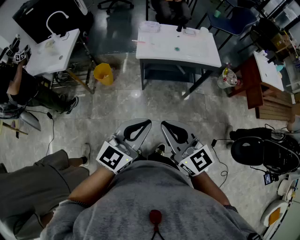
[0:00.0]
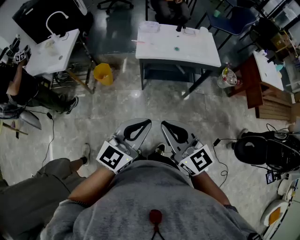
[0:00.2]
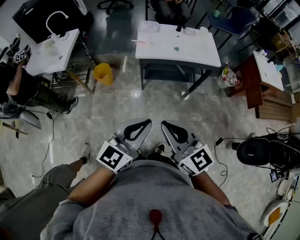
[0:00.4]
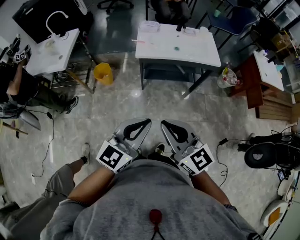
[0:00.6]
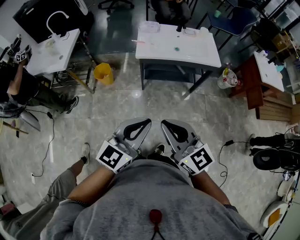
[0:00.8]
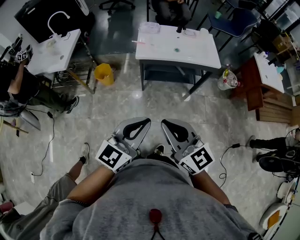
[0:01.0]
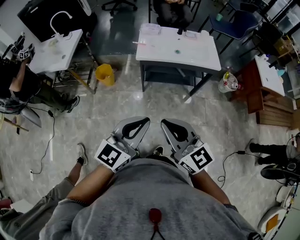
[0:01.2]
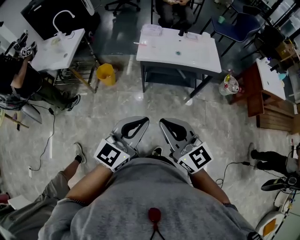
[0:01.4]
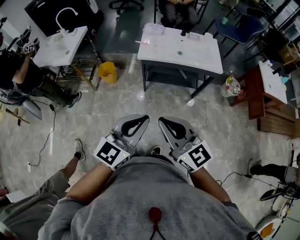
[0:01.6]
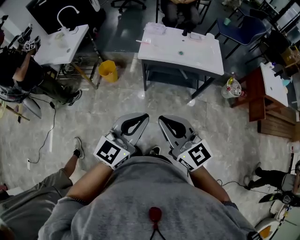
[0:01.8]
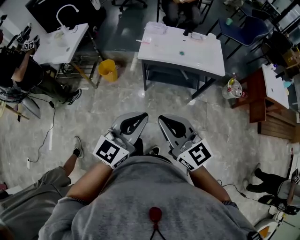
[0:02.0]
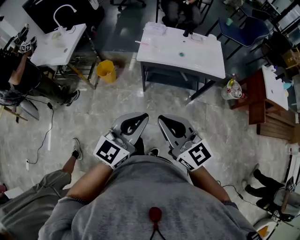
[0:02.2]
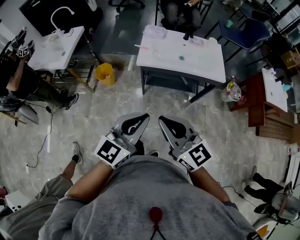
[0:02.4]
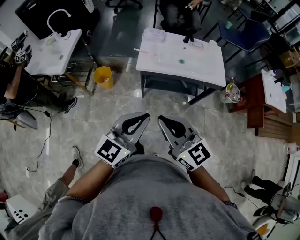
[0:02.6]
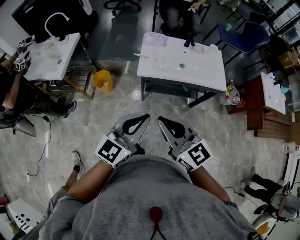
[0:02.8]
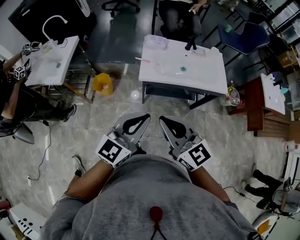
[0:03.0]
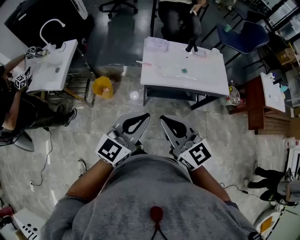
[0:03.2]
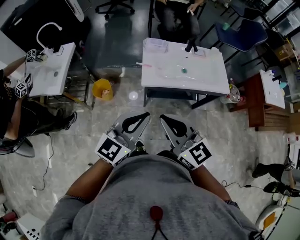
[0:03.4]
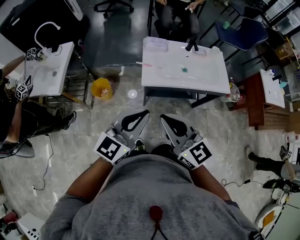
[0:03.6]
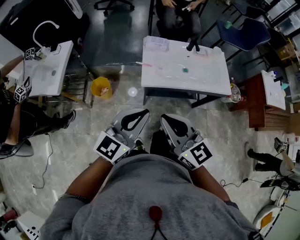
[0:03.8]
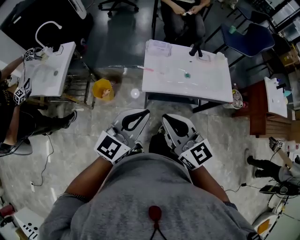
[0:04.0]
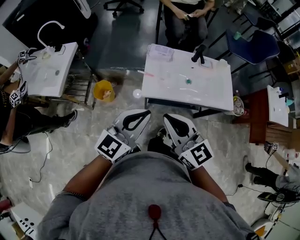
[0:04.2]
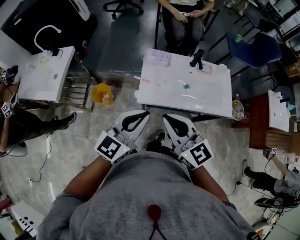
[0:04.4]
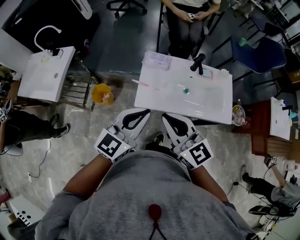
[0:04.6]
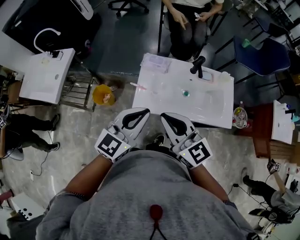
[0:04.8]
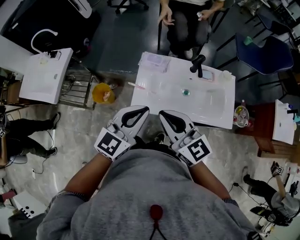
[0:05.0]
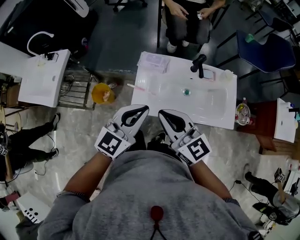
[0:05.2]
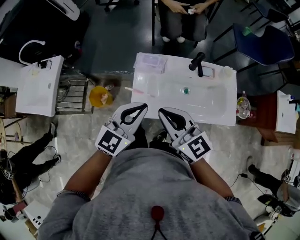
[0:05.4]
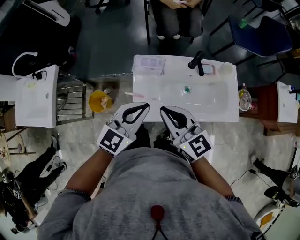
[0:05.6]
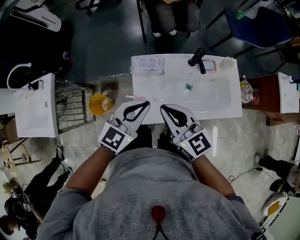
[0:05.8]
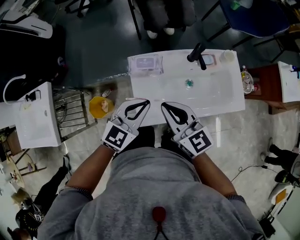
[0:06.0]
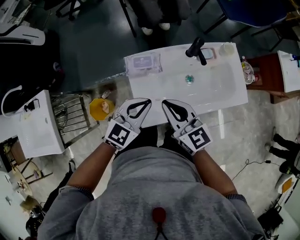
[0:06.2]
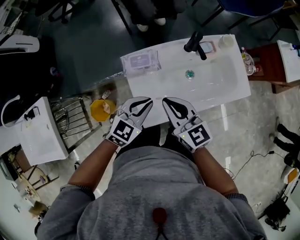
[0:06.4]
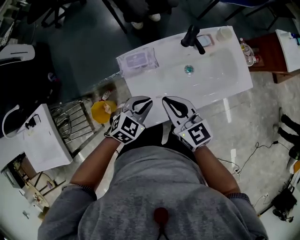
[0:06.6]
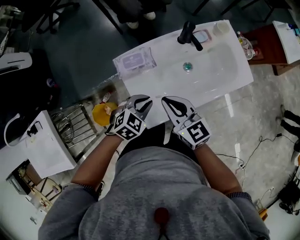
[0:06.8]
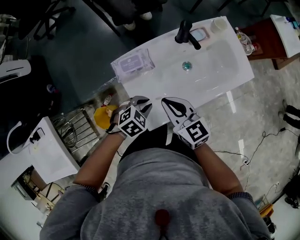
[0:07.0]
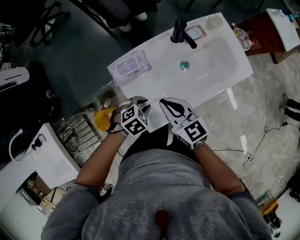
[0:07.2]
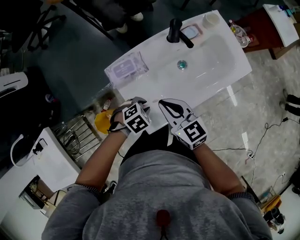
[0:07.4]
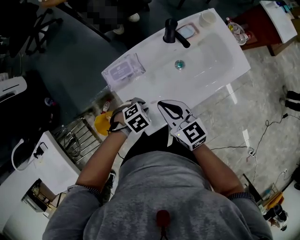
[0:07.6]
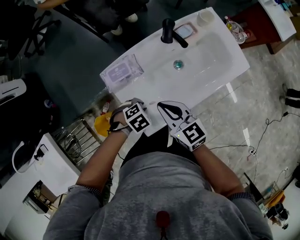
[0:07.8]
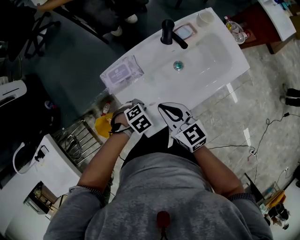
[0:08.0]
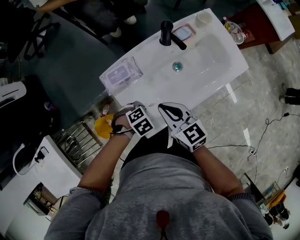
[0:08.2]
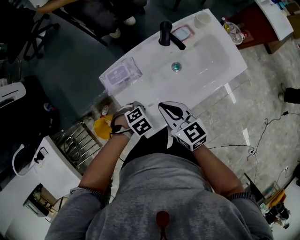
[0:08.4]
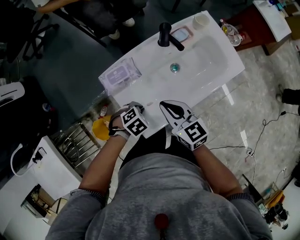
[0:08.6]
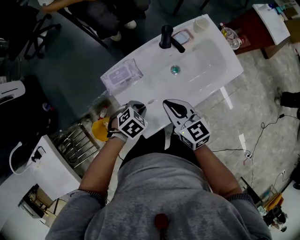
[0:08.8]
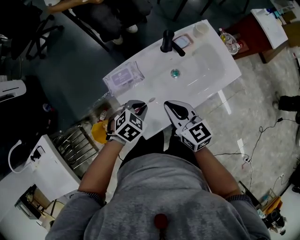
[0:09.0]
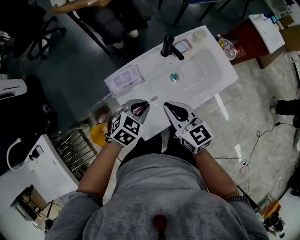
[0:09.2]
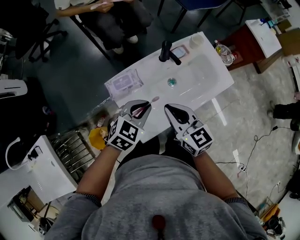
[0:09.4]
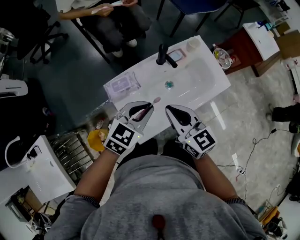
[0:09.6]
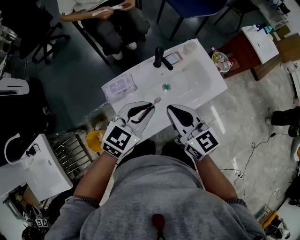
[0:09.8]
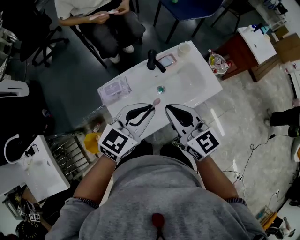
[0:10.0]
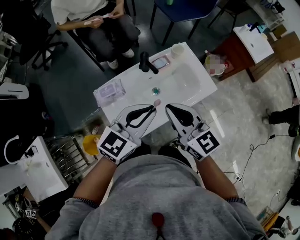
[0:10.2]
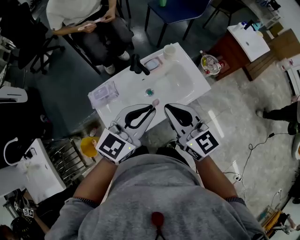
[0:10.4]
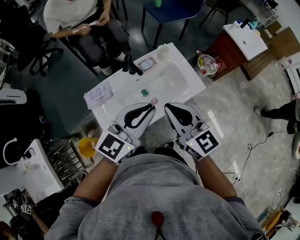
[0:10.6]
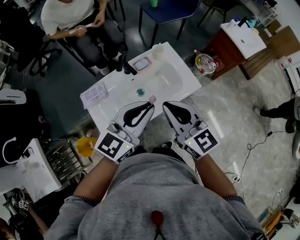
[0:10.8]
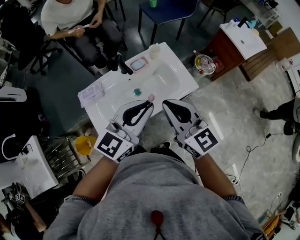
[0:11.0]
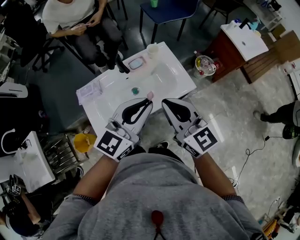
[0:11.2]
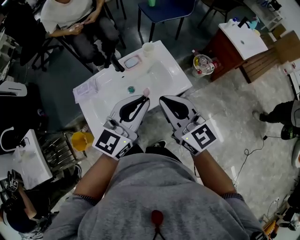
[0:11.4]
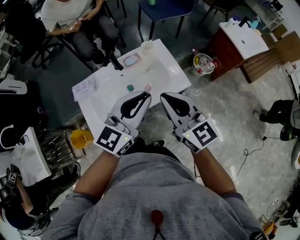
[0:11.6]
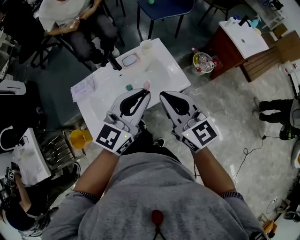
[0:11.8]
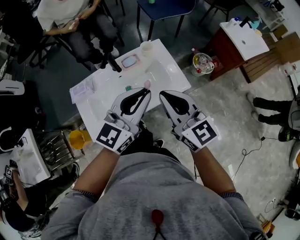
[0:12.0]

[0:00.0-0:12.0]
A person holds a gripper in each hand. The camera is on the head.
0:00.0 to 0:01.6: The grippers move only a little.
0:01.6 to 0:03.0: The grippers both shift forward by about 20 cm.
0:03.0 to 0:04.4: The two grippers go approximately 20 cm forward.
0:04.4 to 0:06.0: The two grippers go about 25 cm forward and downward. The left gripper turns by approximately 20 degrees.
0:06.0 to 0:07.6: The right gripper heads downward, covering approximately 15 cm, and rotates about 20 degrees; the left gripper is displaced downward by roughly 25 cm, points its fingers some 50 degrees further downward, and opens its fingers.
0:07.6 to 0:09.0: The left gripper moves upward, roughly 10 cm, and changes its angle by approximately 20 degrees.
0:09.0 to 0:10.4: The grippers both shift upward and to the right by about 30 cm. The left gripper points its fingers approximately 50 degrees further upward.
0:10.4 to 0:12.0: Both grippers move to the right, approximately 15 cm.

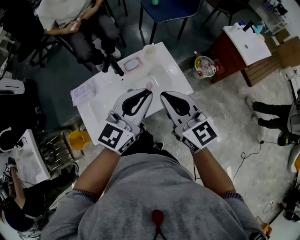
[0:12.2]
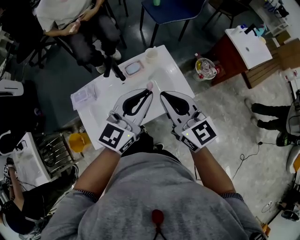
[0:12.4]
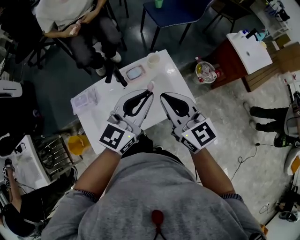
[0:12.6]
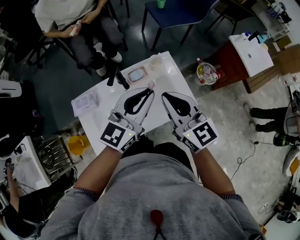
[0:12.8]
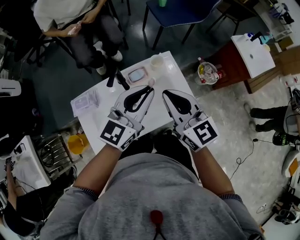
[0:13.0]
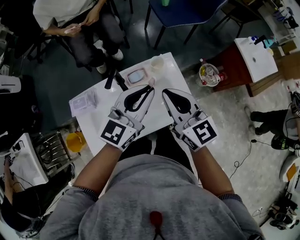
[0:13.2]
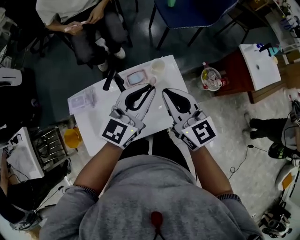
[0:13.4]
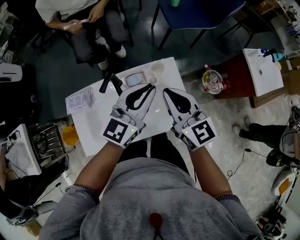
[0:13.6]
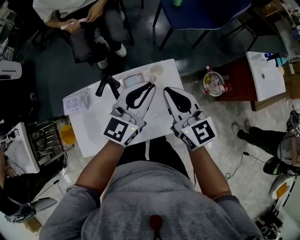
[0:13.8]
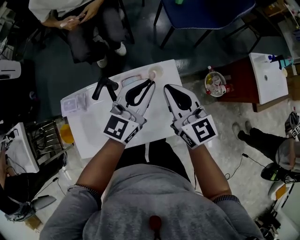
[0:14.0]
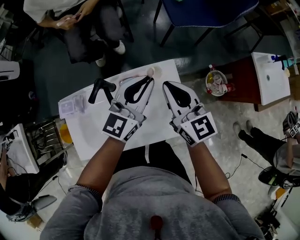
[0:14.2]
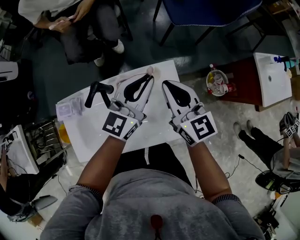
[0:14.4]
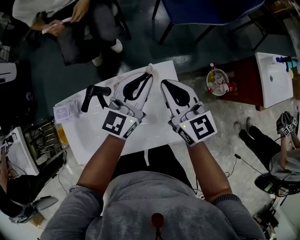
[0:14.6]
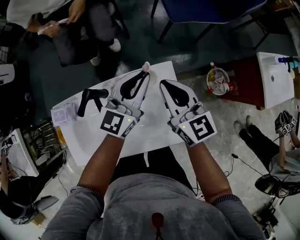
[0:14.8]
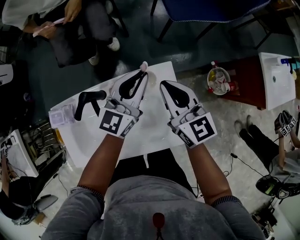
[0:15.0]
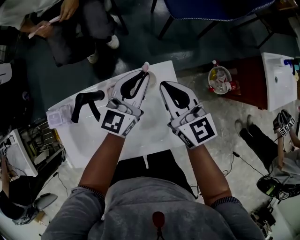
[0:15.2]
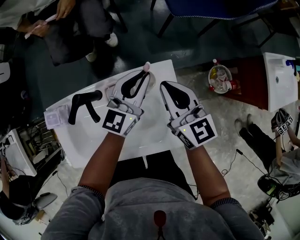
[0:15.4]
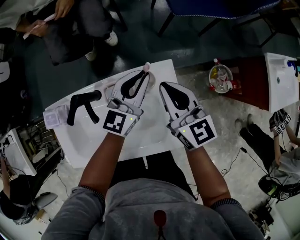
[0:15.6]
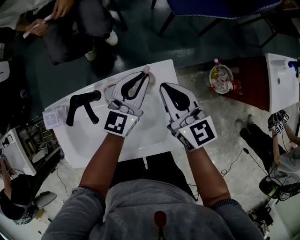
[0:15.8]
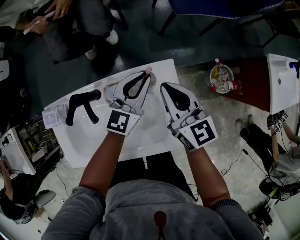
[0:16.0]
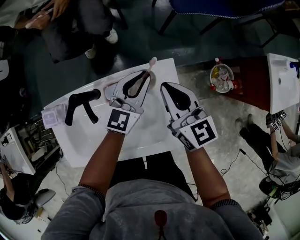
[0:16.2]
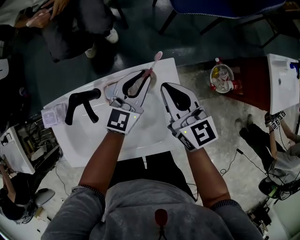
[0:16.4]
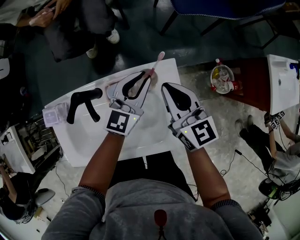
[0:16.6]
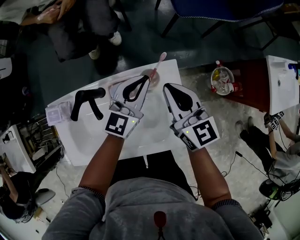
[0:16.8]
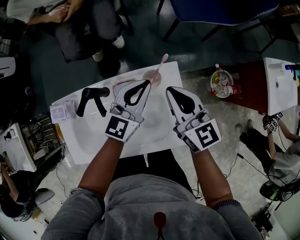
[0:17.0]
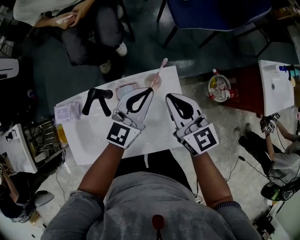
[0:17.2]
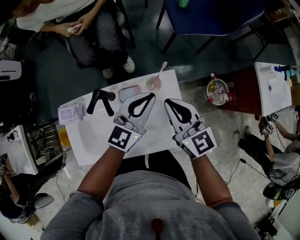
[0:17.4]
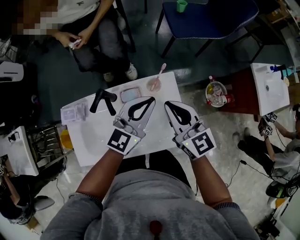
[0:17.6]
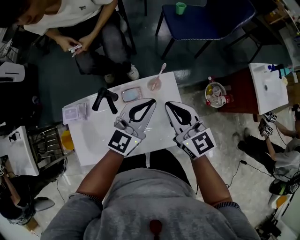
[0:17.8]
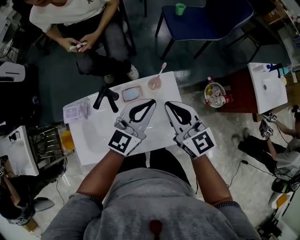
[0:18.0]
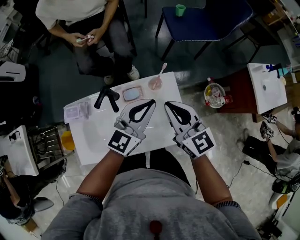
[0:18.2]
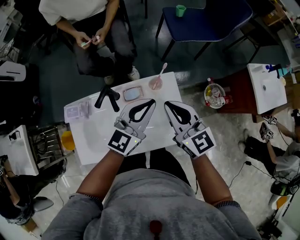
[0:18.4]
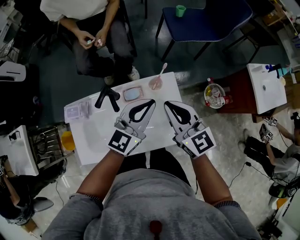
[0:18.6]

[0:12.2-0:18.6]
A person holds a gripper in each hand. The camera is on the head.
0:12.2 to 0:13.8: Both grippers move forward, approximately 20 cm.
0:13.8 to 0:15.4: Both grippers move downward and forward, roughly 20 cm.
0:15.4 to 0:17.0: The grippers move only a little.
0:17.0 to 0:18.6: Both grippers travel together upward and backward, roughly 15 cm.

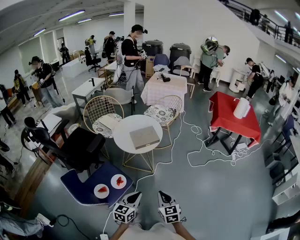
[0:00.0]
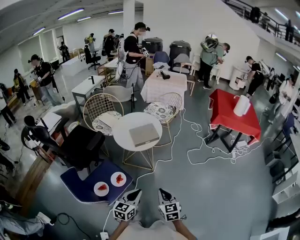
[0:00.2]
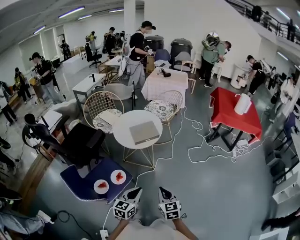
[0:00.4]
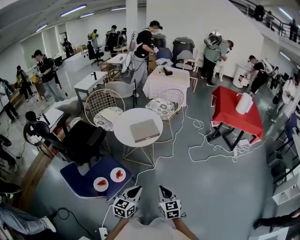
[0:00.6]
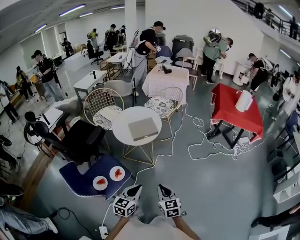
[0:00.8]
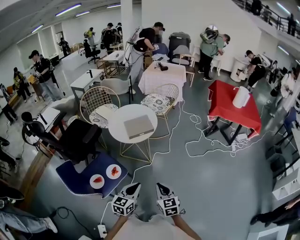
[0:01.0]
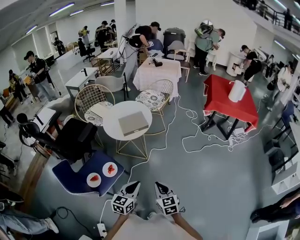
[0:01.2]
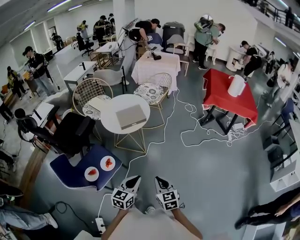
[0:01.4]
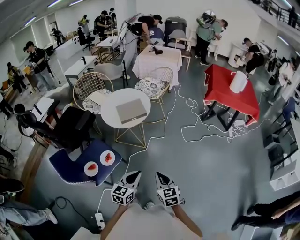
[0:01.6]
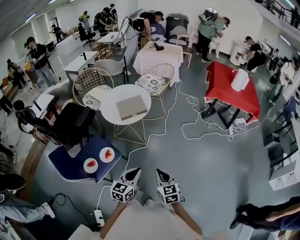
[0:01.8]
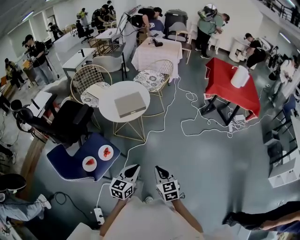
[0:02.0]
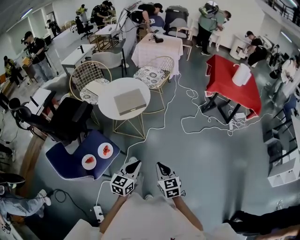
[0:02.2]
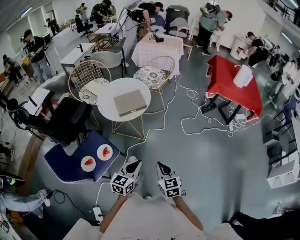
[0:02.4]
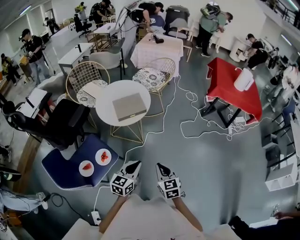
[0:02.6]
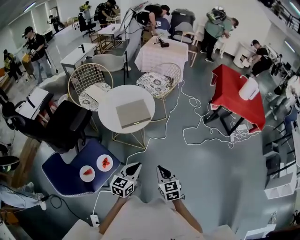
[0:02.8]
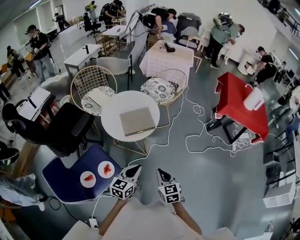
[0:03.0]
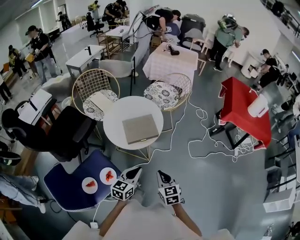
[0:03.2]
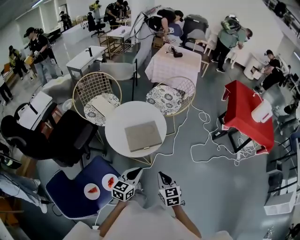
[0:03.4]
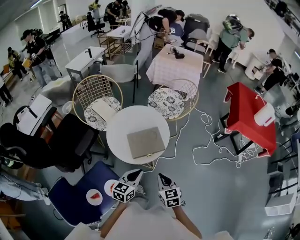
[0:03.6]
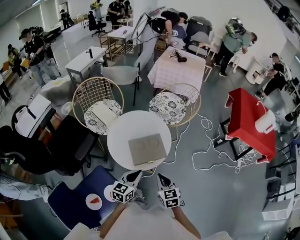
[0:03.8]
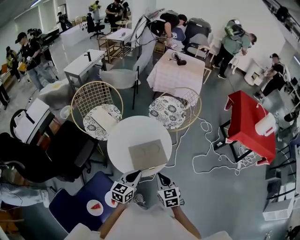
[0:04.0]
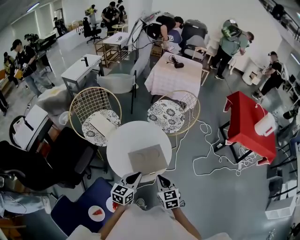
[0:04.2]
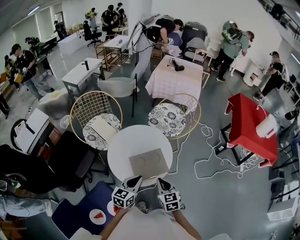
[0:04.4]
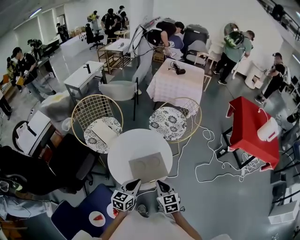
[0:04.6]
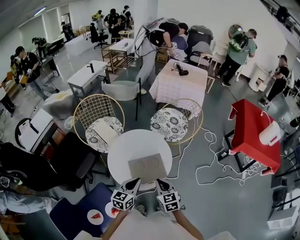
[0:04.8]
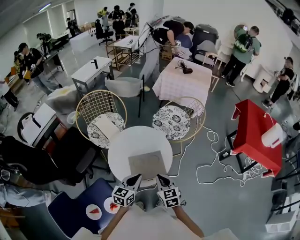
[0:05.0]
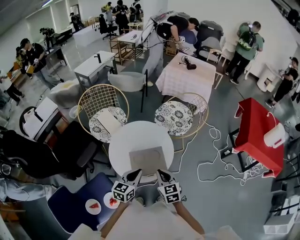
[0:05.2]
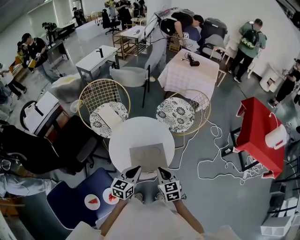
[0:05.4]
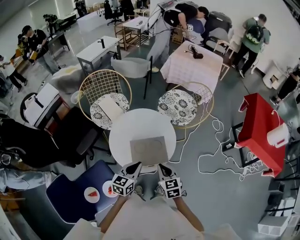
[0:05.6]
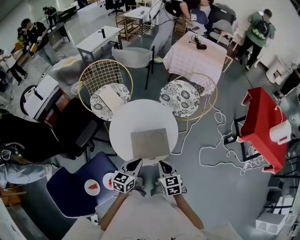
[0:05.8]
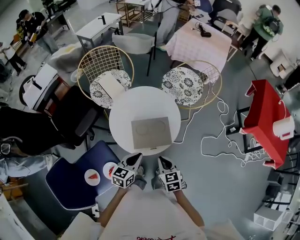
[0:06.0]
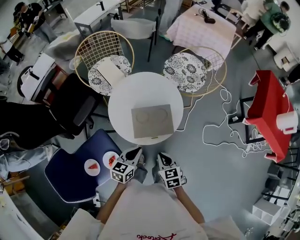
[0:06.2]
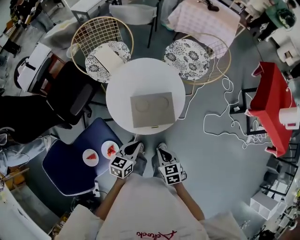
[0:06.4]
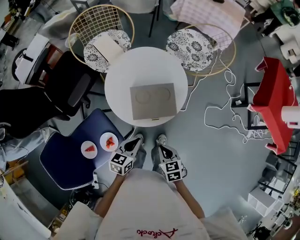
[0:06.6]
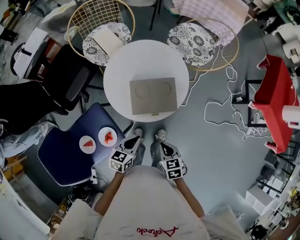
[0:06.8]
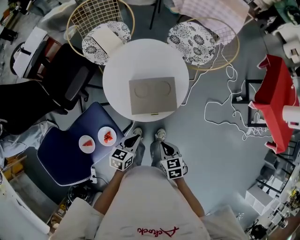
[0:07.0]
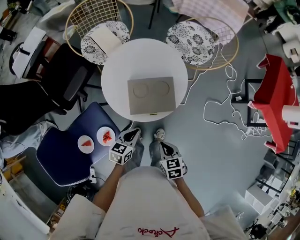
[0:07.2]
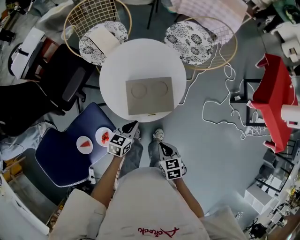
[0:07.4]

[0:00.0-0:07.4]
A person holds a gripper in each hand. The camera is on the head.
0:00.0 to 0:01.4: Both grippers travel together to the right, some 10 cm.
0:01.4 to 0:03.0: Both grippers travel together forward, approximately 20 cm.
0:03.0 to 0:04.4: The grippers both shift forward and to the left by some 30 cm.
0:04.4 to 0:06.0: The left gripper shifts by some 5 cm, while the right gripper goes approximately 5 cm downward.
0:06.0 to 0:07.4: The right gripper goes some 15 cm downward and backward. The left gripper heads downward, covering about 10 cm.
